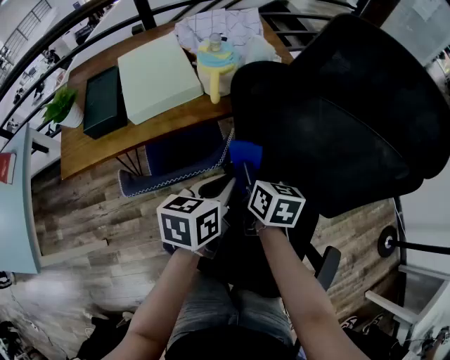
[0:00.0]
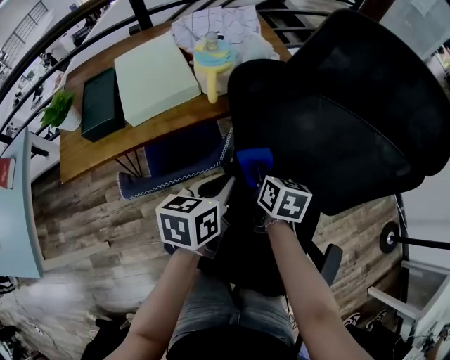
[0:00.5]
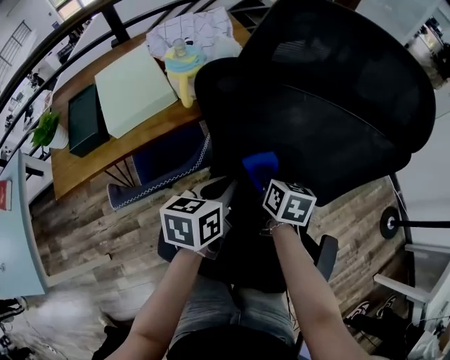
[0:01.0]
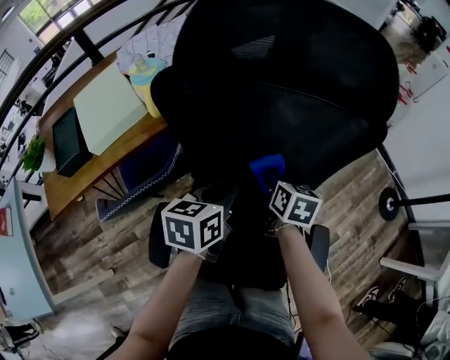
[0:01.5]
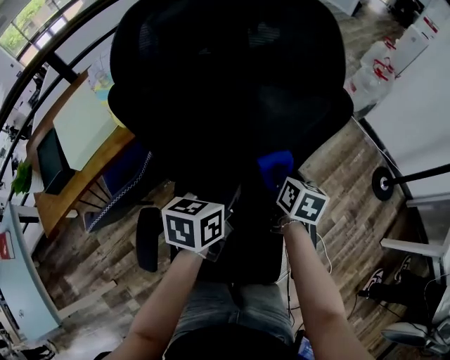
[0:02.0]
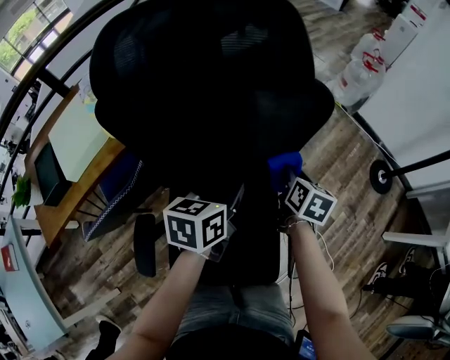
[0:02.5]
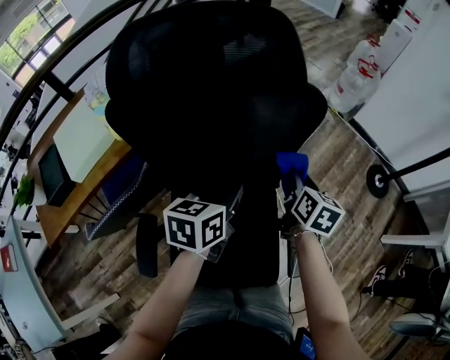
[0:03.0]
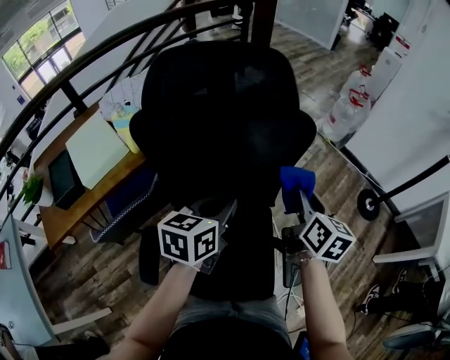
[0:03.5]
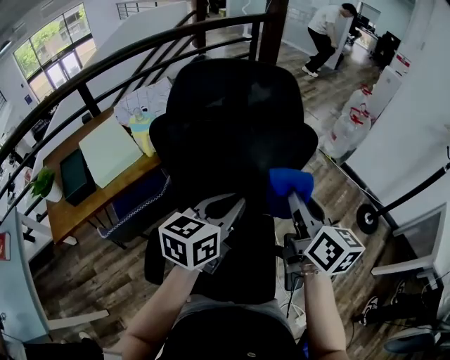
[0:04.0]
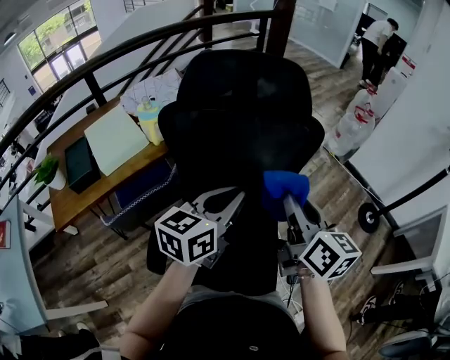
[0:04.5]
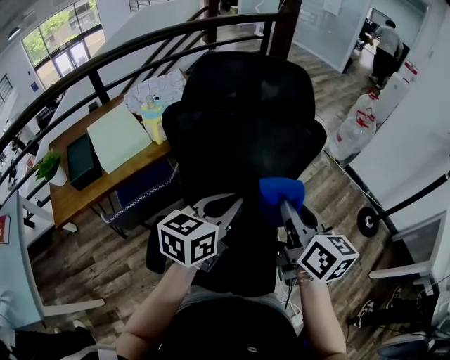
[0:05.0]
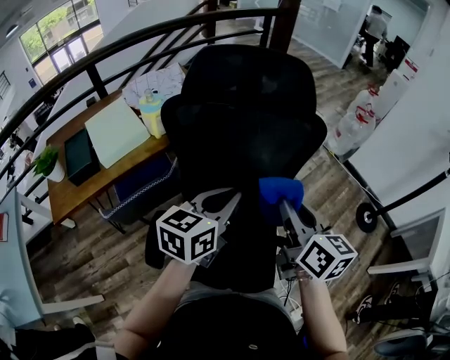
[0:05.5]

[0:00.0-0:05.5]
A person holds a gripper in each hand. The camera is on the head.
0:00.0 to 0:02.0: The right gripper ends up approximately 30 cm from where it was, and swivels approximately 30 degrees. The left gripper shifts by approximately 20 cm, and turns by roughly 20 degrees.
0:02.0 to 0:03.5: The left gripper heads upward, covering roughly 10 cm. The right gripper travels upward and to the right by approximately 20 cm.
0:03.5 to 0:05.5: The right gripper is displaced backward, to the left and upward by about 15 cm, and rotates some 20 degrees. The left gripper travels backward and upward by approximately 10 cm.

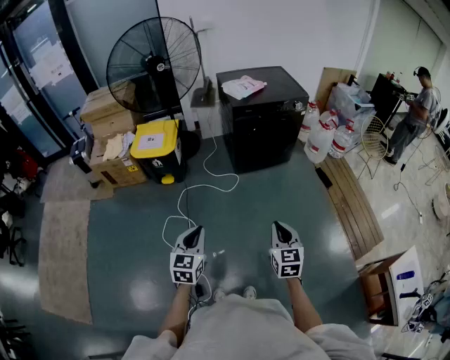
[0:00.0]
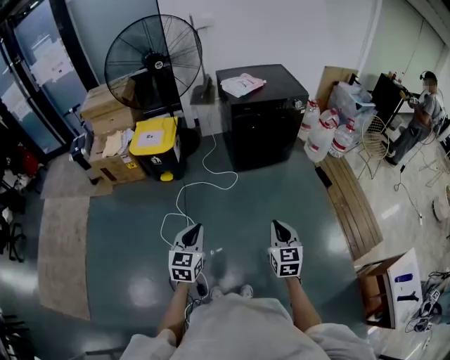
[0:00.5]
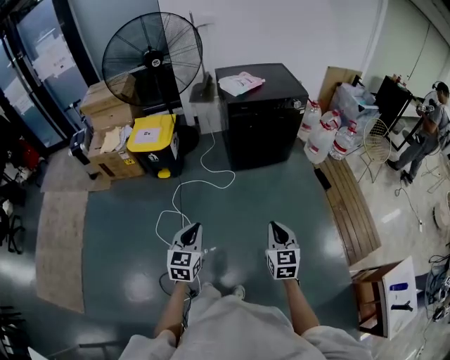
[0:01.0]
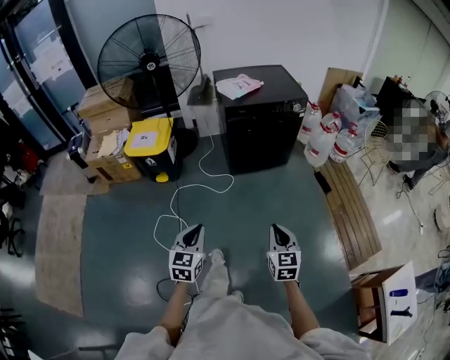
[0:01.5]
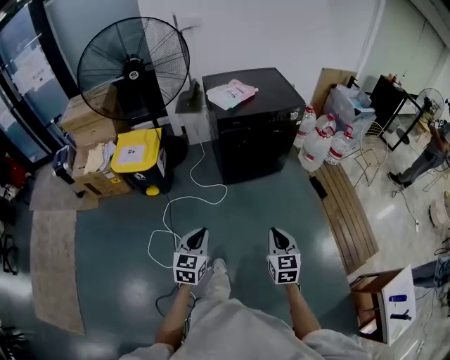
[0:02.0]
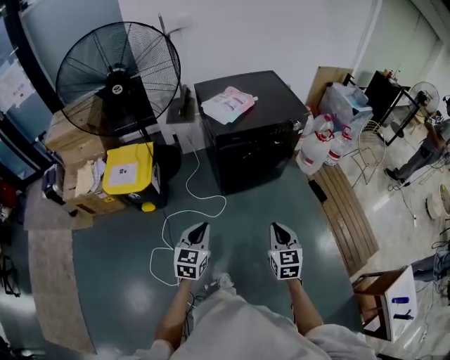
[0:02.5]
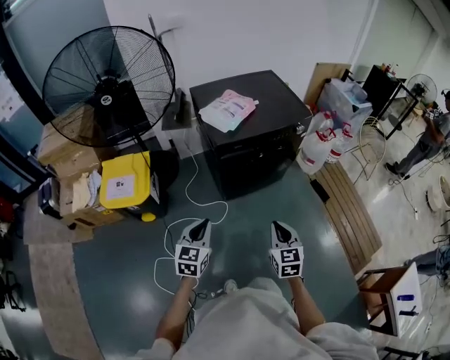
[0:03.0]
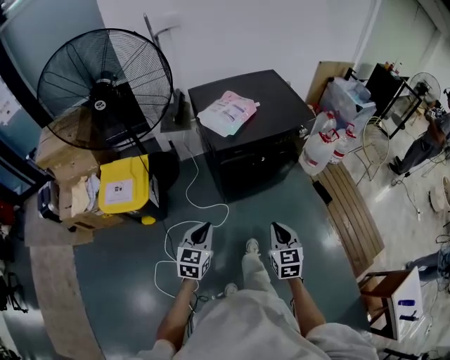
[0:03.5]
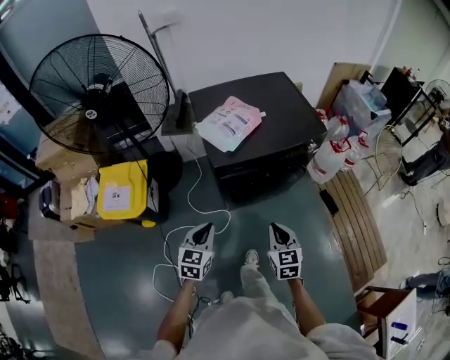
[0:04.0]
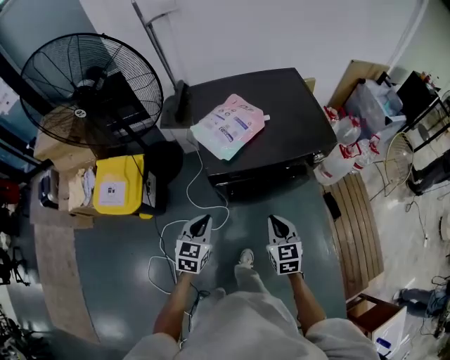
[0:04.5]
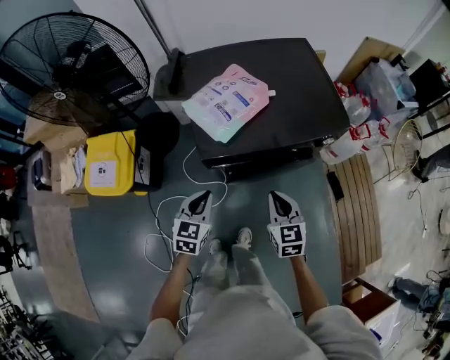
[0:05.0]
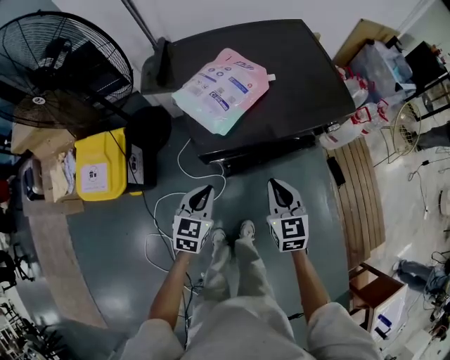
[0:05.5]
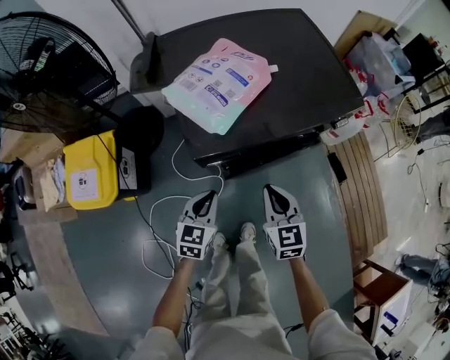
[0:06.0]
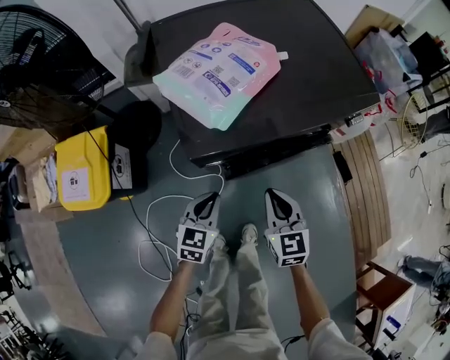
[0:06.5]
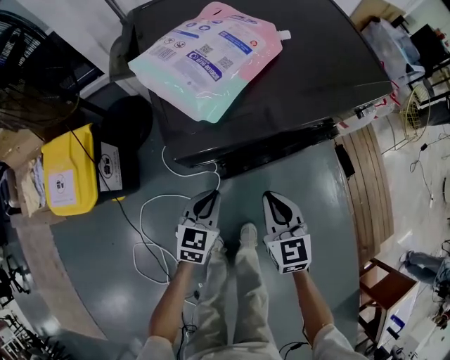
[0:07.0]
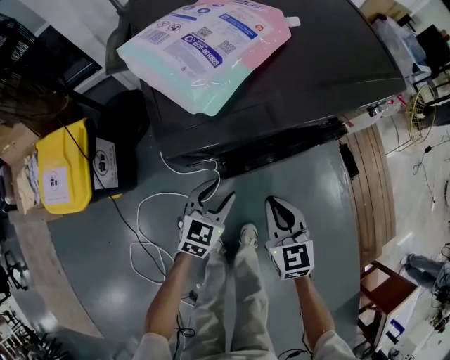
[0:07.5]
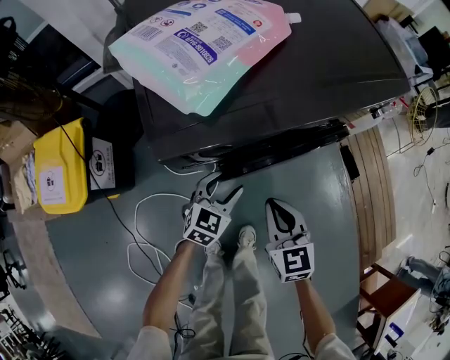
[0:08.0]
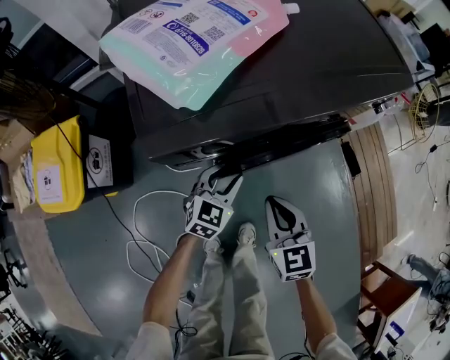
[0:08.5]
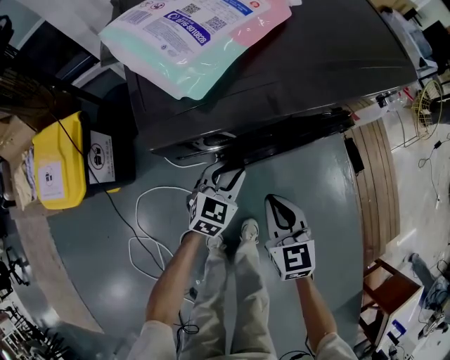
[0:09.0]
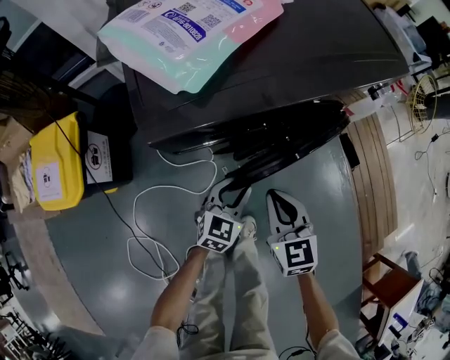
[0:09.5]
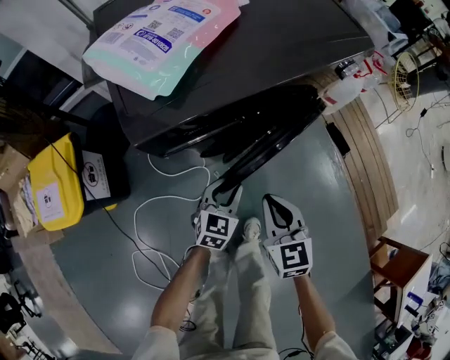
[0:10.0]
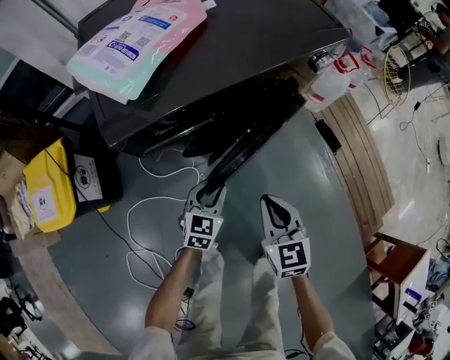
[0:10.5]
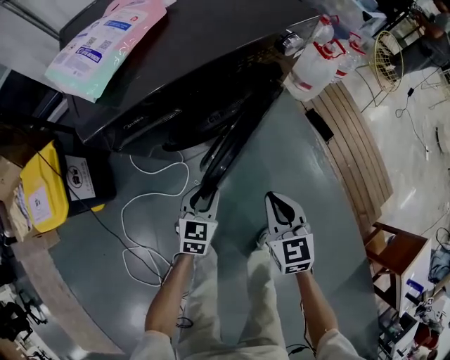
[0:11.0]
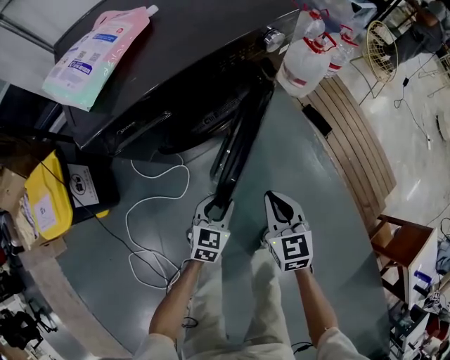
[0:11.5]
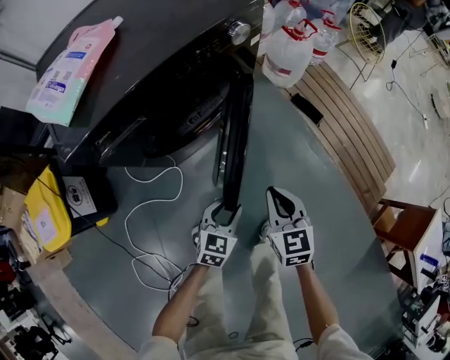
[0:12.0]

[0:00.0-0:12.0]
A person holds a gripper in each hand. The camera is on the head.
0:00.0 to 0:02.0: The left gripper is displaced forward and to the right by approximately 20 cm. The right gripper is displaced forward by approximately 15 cm.
0:02.0 to 0:04.0: The two grippers travel together, forward, some 40 cm.
0:04.0 to 0:06.0: The grippers both shift forward and downward by roughly 25 cm.
0:06.0 to 0:08.0: Both grippers travel together downward, some 20 cm. The left gripper opens up.
0:08.0 to 0:10.0: The left gripper is displaced backward and to the right by about 10 cm, and closes, while the right gripper shifts by approximately 5 cm.
0:10.0 to 0:12.0: The left gripper is displaced to the right and backward by some 20 cm, while the right gripper goes roughly 20 cm to the right.

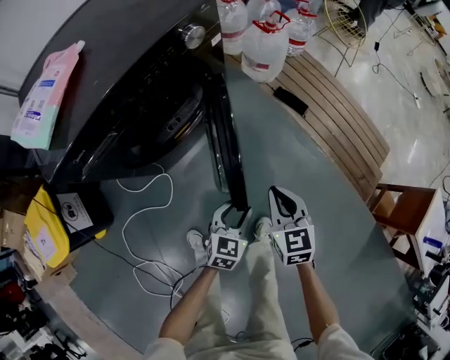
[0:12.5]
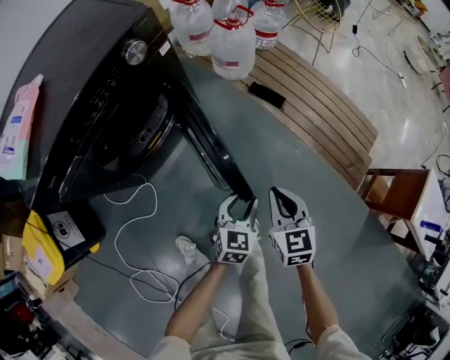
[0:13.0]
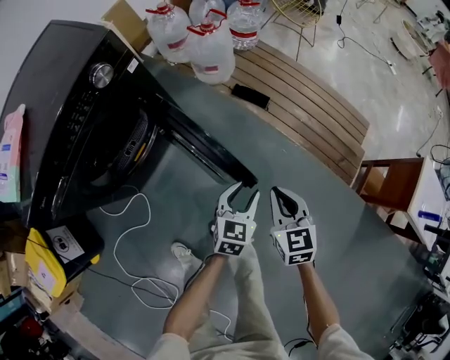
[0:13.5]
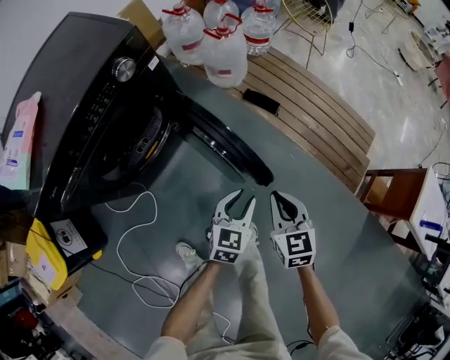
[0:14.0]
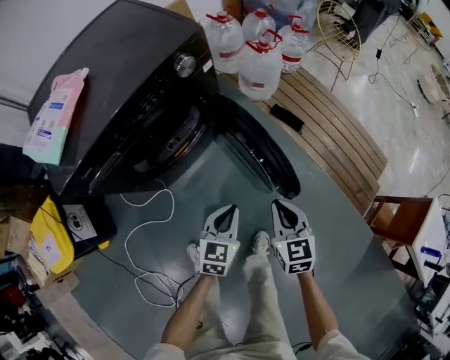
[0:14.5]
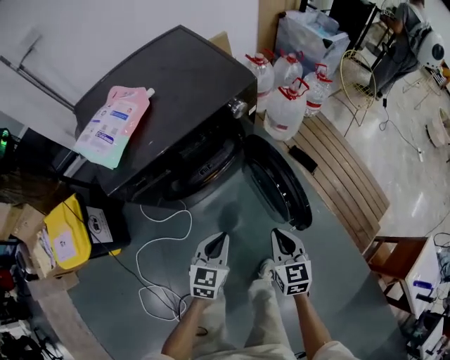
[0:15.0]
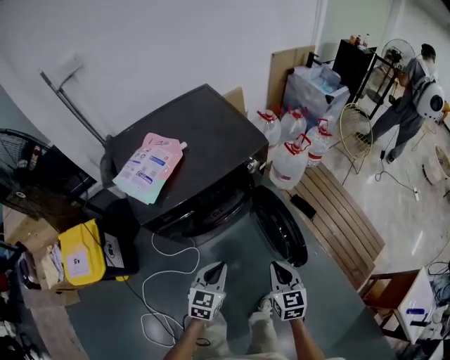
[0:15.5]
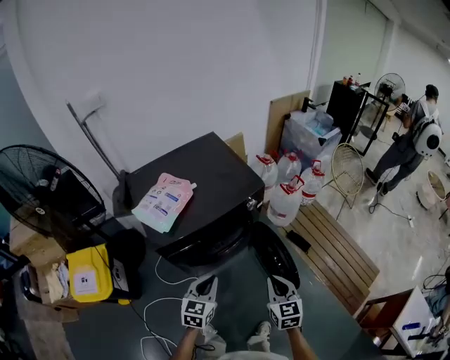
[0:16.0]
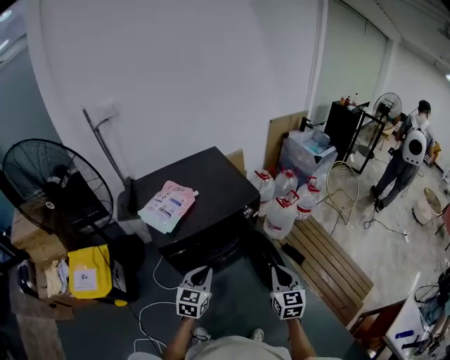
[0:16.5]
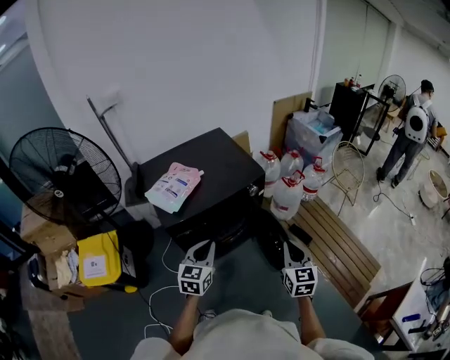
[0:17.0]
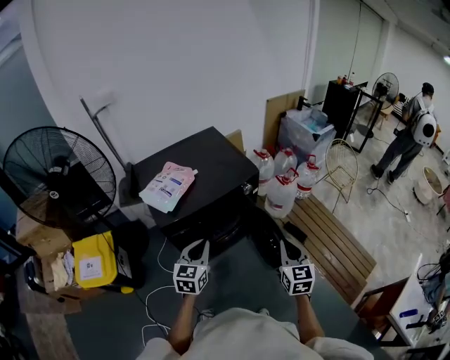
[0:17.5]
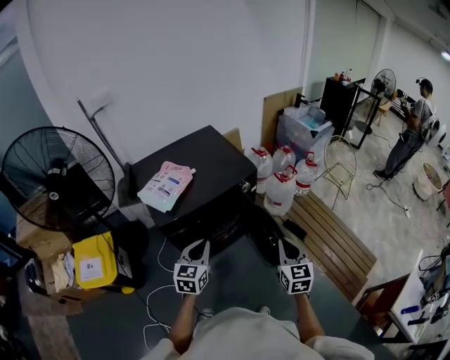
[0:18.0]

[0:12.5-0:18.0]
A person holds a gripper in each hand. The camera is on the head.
0:12.5 to 0:14.5: The left gripper moves upward, some 5 cm, reaches about 20 cm to the right, then returns, and closes up; the right gripper reaches roughly 20 cm to the right, then returns.
0:14.5 to 0:16.0: Both grippers move upward and to the left, roughly 30 cm.
0:16.0 to 0:18.0: The right gripper moves upward and to the right, roughly 10 cm; the left gripper moves upward, about 10 cm.

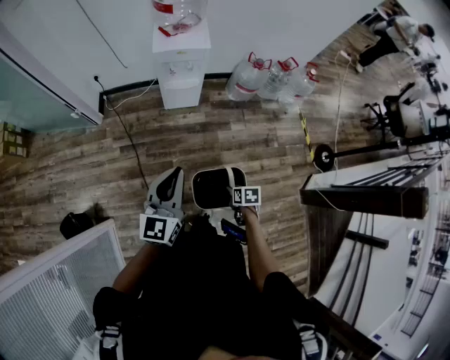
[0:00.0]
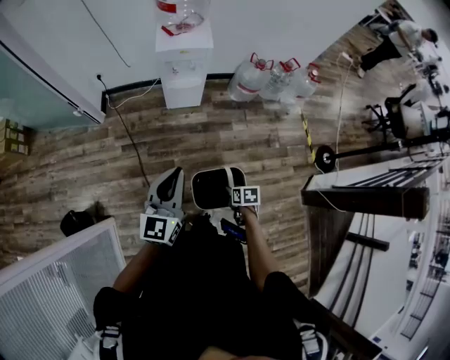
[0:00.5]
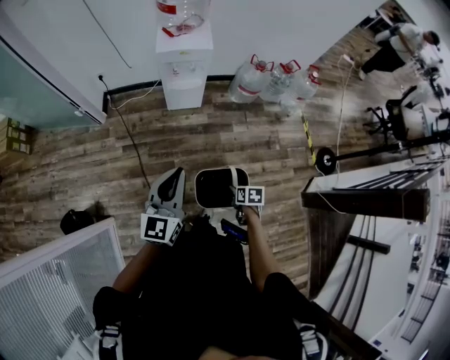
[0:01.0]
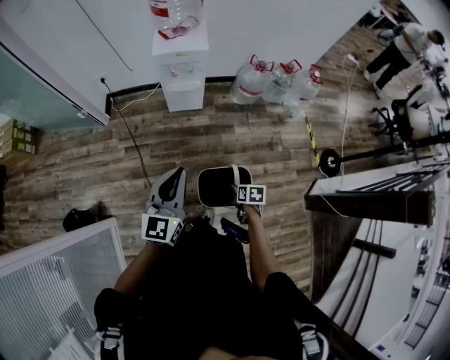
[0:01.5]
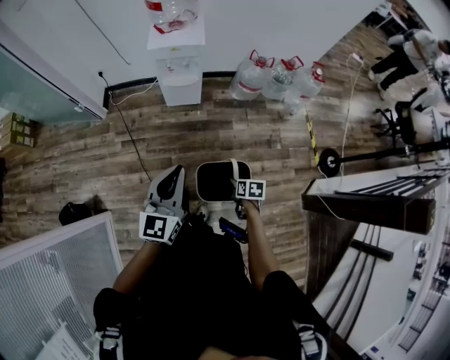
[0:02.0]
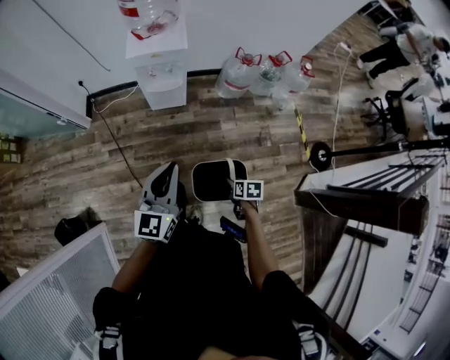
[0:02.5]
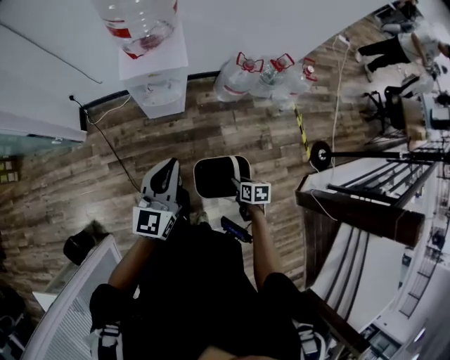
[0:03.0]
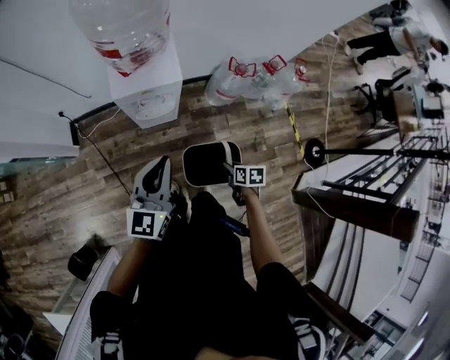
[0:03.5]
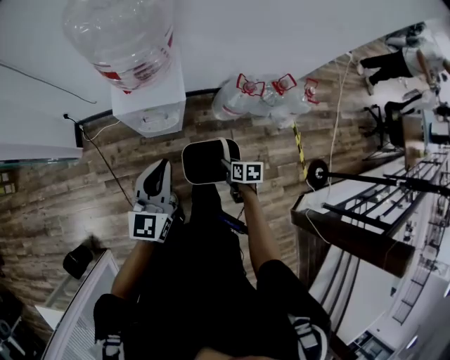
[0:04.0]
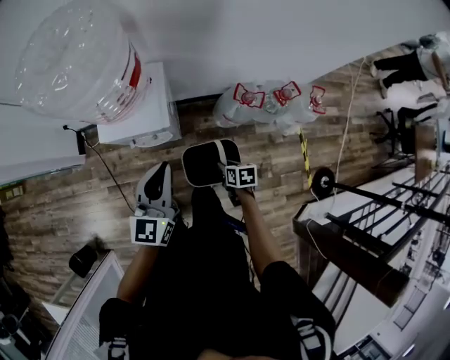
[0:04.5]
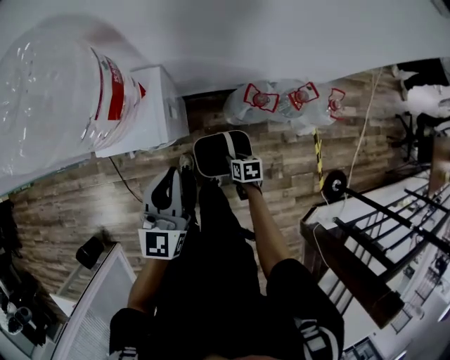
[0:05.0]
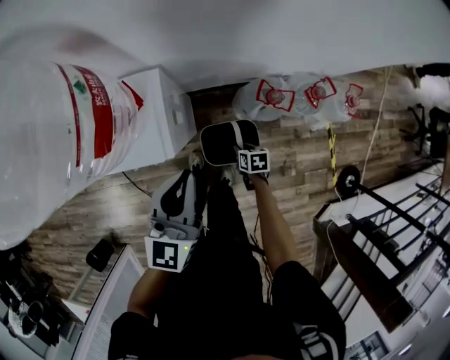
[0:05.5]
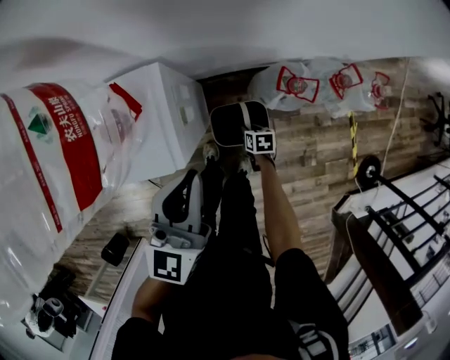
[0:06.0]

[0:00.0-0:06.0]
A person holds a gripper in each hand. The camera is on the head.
0:00.0 to 0:02.0: Both grippers move to the right, roughly 10 cm.
0:02.0 to 0:04.0: The two grippers go some 40 cm forward.
0:04.0 to 0:06.0: The right gripper moves downward and forward, roughly 35 cm. Meanwhile the left gripper goes about 30 cm forward and to the right.
